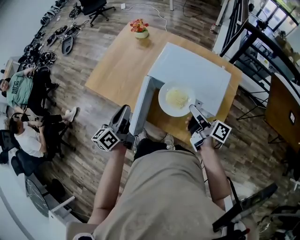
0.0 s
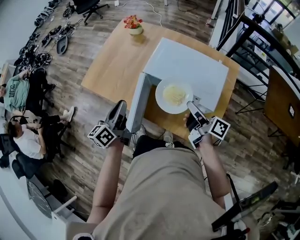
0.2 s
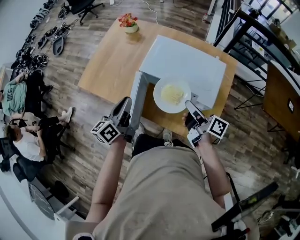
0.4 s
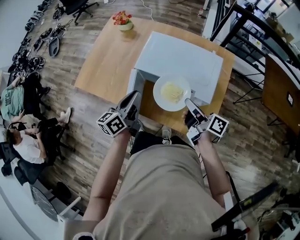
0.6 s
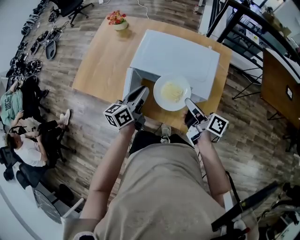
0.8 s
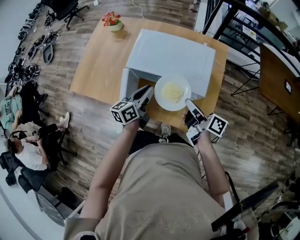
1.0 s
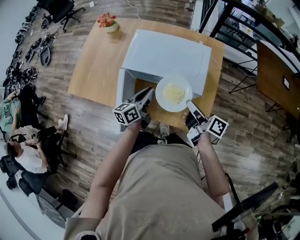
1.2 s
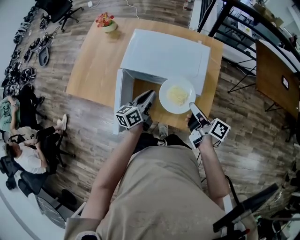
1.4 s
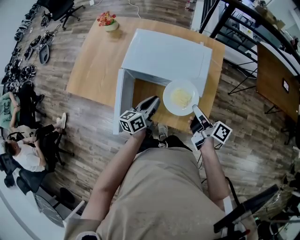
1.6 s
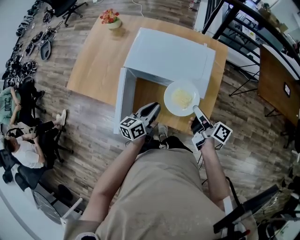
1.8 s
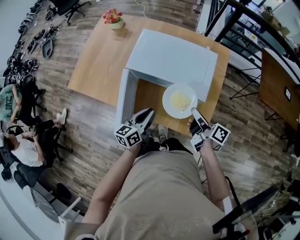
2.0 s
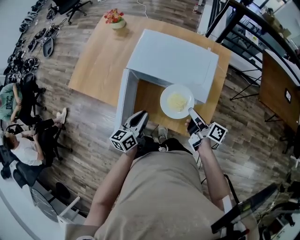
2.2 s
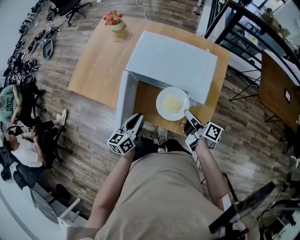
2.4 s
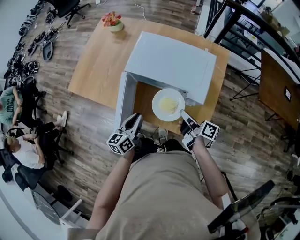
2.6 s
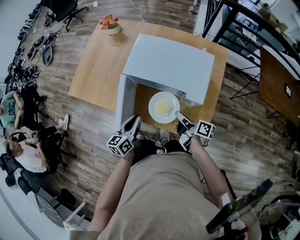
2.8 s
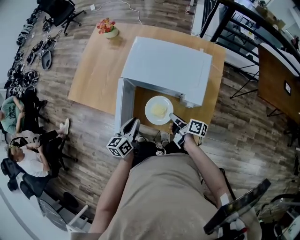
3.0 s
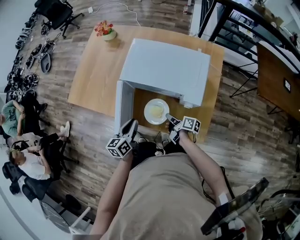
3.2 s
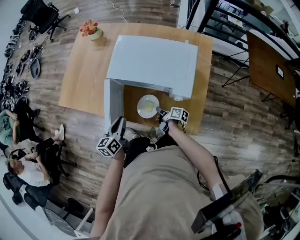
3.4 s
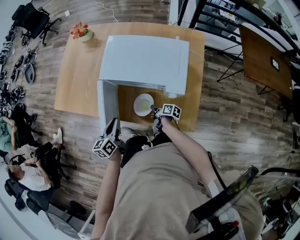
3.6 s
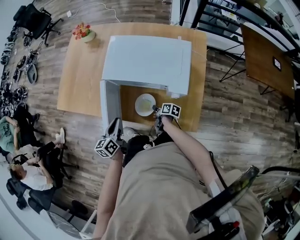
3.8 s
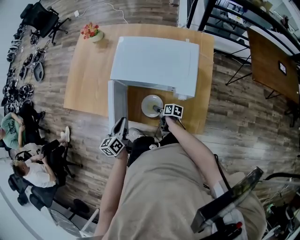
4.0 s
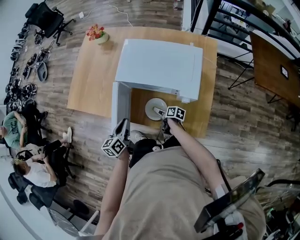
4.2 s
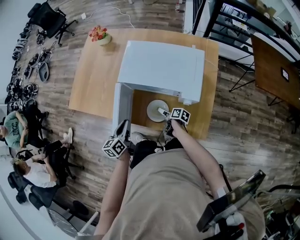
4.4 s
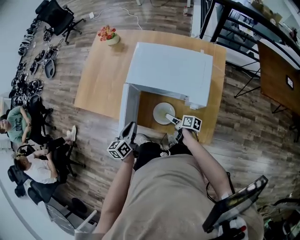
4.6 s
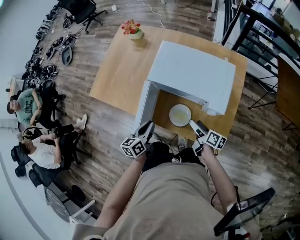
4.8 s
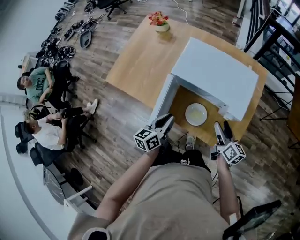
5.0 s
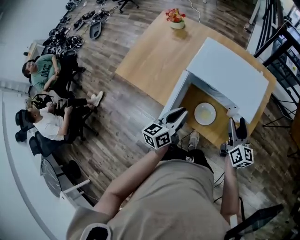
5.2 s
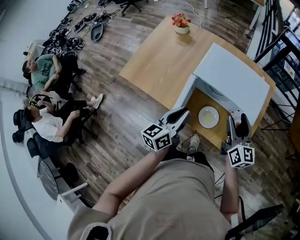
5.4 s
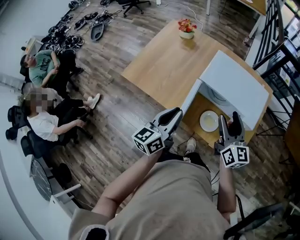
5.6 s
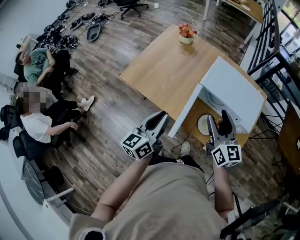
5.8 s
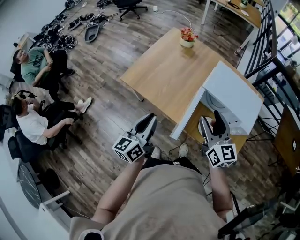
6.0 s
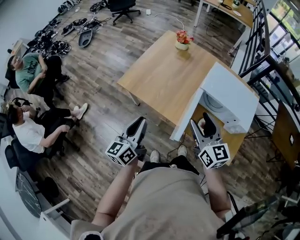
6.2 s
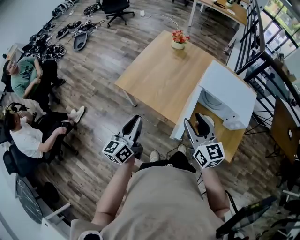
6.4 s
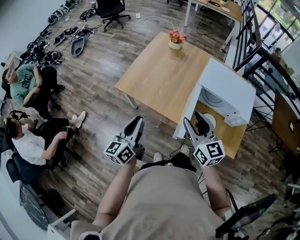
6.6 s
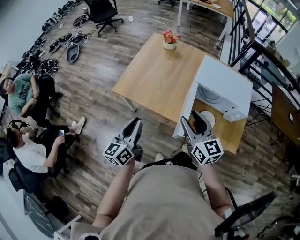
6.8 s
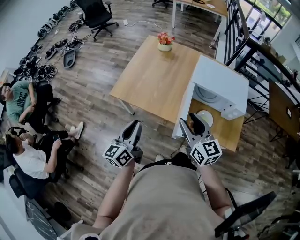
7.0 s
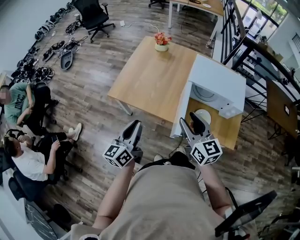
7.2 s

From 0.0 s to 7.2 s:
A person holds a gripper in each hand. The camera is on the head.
From 0.0 s to 1.4 s: The right gripper moves to the right, downward and backward, some 15 cm. Meanwhile the left gripper is displaced to the right and downward by approximately 25 cm, and rotates approximately 30 degrees.
From 1.4 s to 2.8 s: The left gripper travels to the left and backward by about 10 cm. The right gripper heads downward and to the left, covering about 10 cm.
From 2.8 s to 4.4 s: The right gripper is displaced downward by about 20 cm, turns by some 30 degrees, and opens up, while the left gripper is displaced to the left by approximately 5 cm.
From 4.4 s to 5.8 s: The left gripper shifts roughly 25 cm upward and to the left, and changes its angle by about 20 degrees. Meanwhile the right gripper moves upward, some 50 cm, twists about 70 degrees counterclockwise, seen from behind, and closes up.
From 5.8 s to 7.2 s: The right gripper shifts some 15 cm to the left and backward, while the left gripper is displaced to the left by about 15 cm.

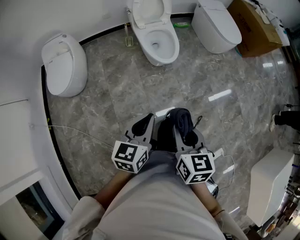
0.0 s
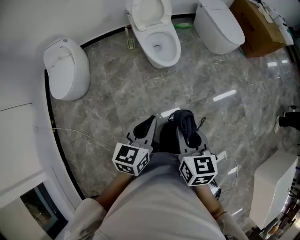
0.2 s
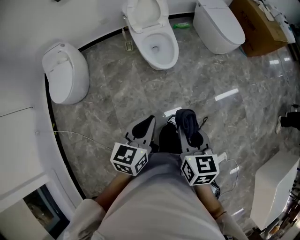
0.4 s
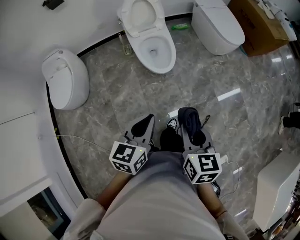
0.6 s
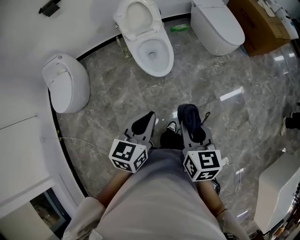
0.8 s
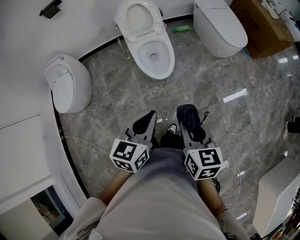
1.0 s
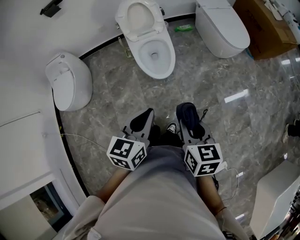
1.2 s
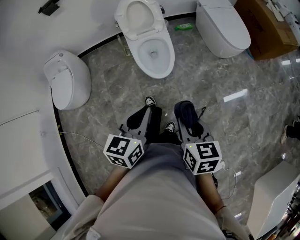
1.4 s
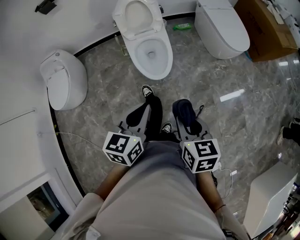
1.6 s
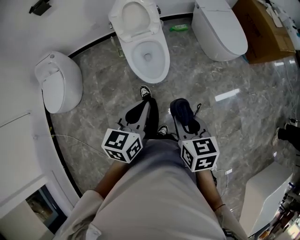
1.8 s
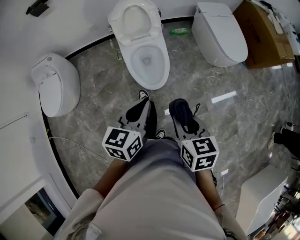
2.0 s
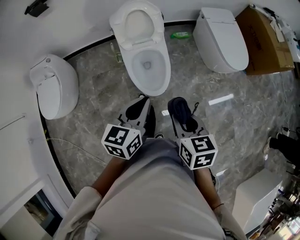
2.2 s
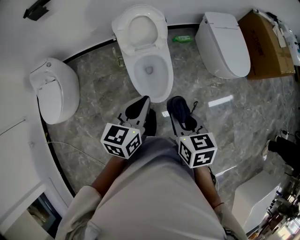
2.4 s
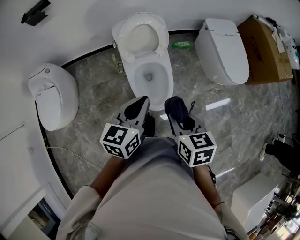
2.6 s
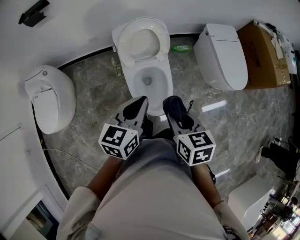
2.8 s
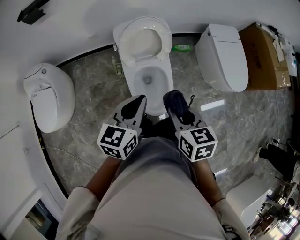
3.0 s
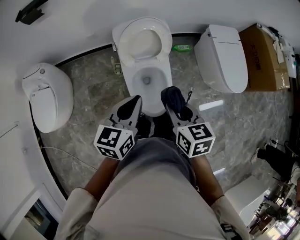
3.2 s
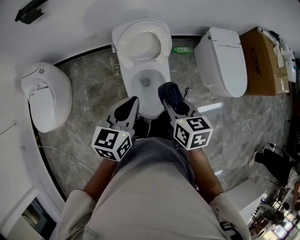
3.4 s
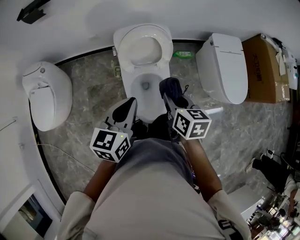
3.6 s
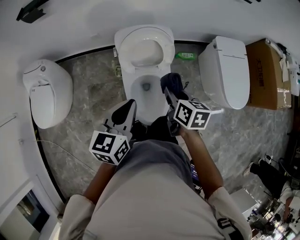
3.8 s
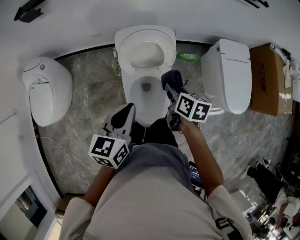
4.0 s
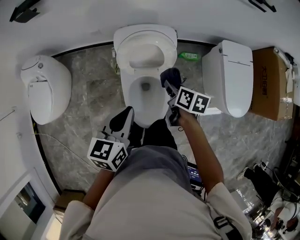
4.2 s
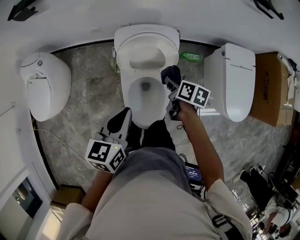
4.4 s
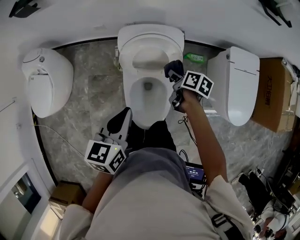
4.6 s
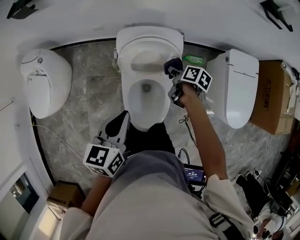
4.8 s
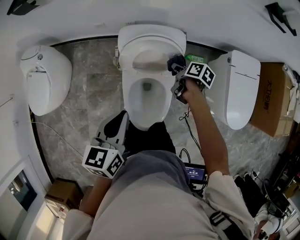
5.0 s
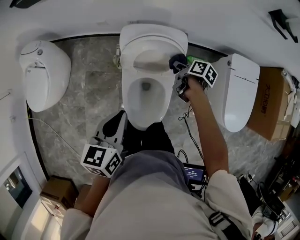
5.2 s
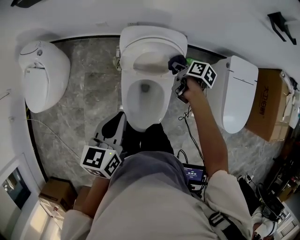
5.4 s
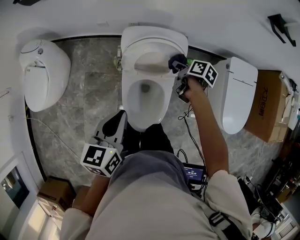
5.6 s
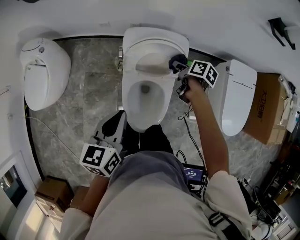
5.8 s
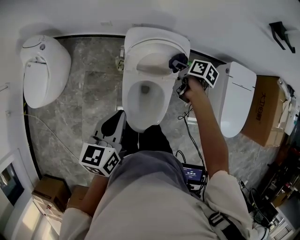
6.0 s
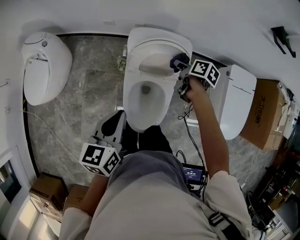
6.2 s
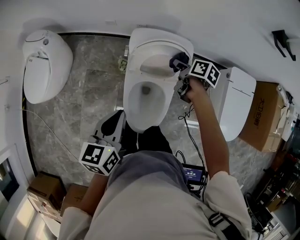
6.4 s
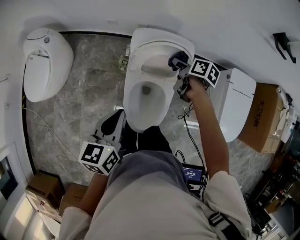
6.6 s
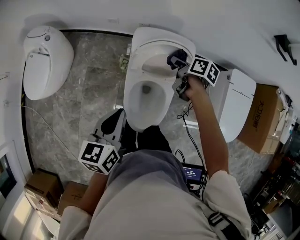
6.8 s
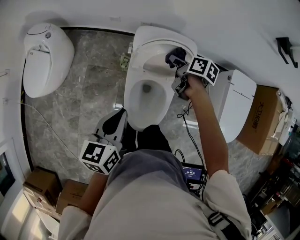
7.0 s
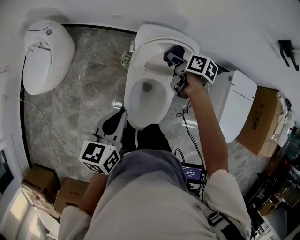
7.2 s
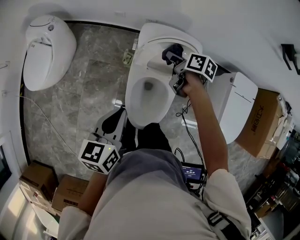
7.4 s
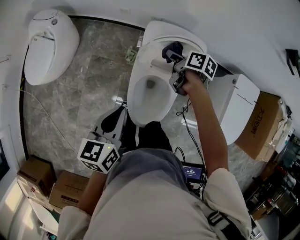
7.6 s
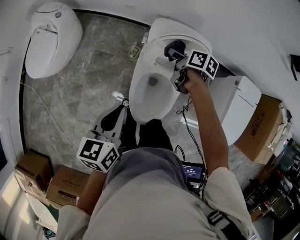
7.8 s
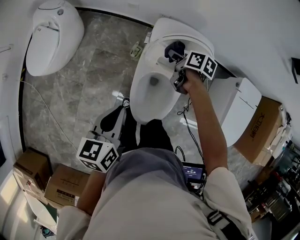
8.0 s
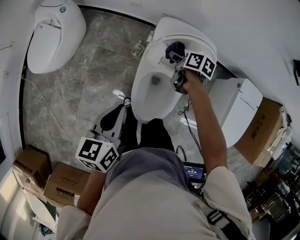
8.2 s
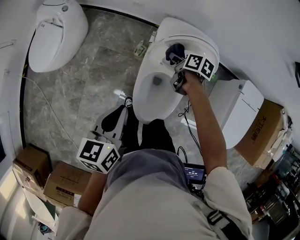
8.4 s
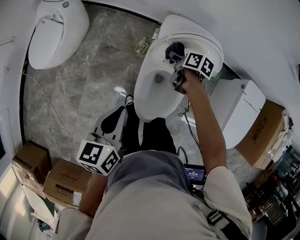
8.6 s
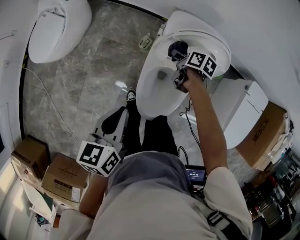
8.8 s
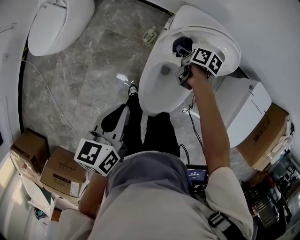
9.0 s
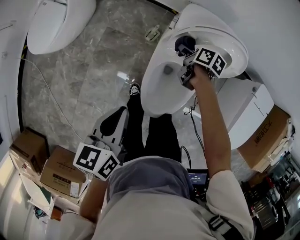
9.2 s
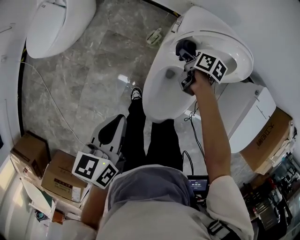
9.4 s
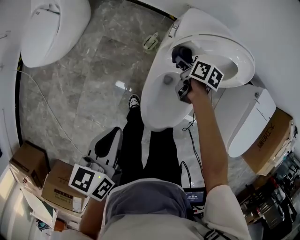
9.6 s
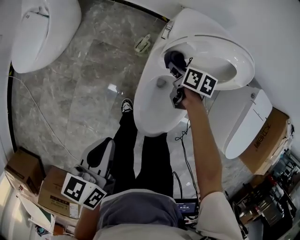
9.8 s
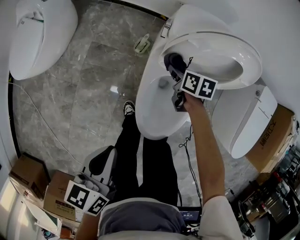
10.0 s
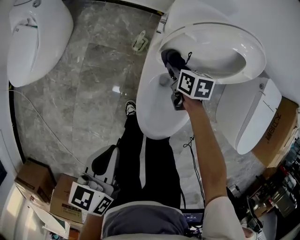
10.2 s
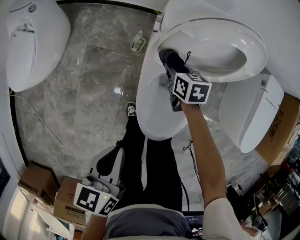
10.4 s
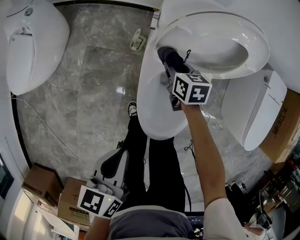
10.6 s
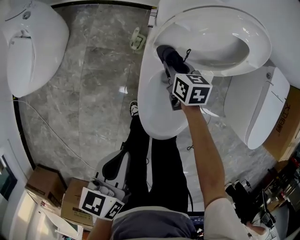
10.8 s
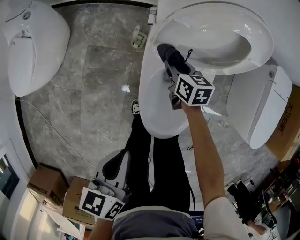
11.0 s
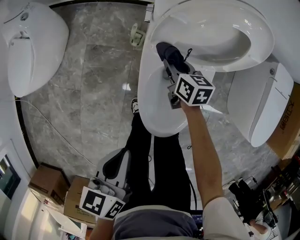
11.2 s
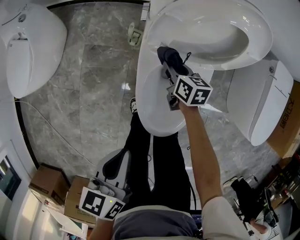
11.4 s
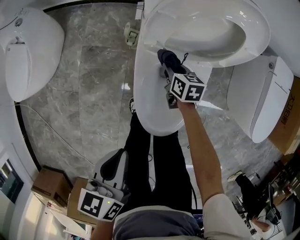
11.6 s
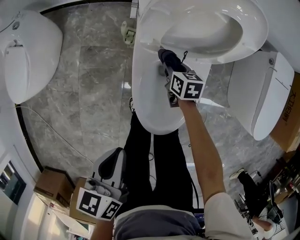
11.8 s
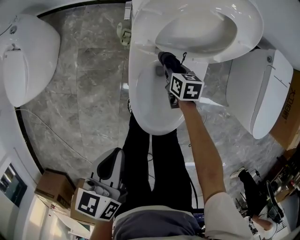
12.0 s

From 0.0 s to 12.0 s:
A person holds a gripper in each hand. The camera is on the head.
From 0.0 s to 1.6 s: The grippers both shift forward and to the right by some 30 cm.
From 1.6 s to 3.0 s: The grippers both shift forward by approximately 35 cm.
From 3.0 s to 4.4 s: The left gripper travels forward by approximately 10 cm. The right gripper moves forward and downward, about 35 cm, and rotates some 30 degrees.
From 4.4 s to 6.0 s: The right gripper goes about 10 cm forward. The left gripper moves roughly 5 cm.
From 6.0 s to 7.6 s: The left gripper heads to the left, covering about 5 cm, while the right gripper goes some 15 cm to the left.
From 7.6 s to 9.0 s: The right gripper moves downward and to the left, approximately 15 cm; the left gripper goes approximately 5 cm to the left.
From 9.0 s to 10.4 s: The grippers both shift downward by approximately 10 cm. The right gripper turns by about 30 degrees.
From 10.4 s to 12.0 s: The left gripper moves about 5 cm, while the right gripper heads downward, to the right and backward, covering about 15 cm.

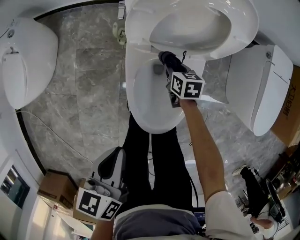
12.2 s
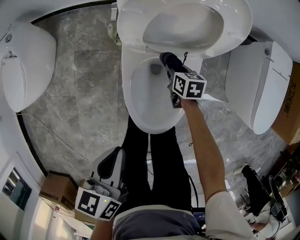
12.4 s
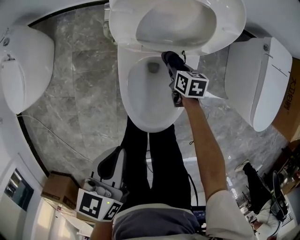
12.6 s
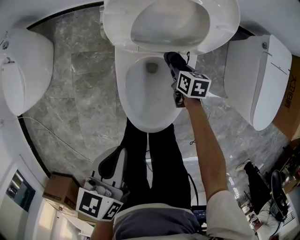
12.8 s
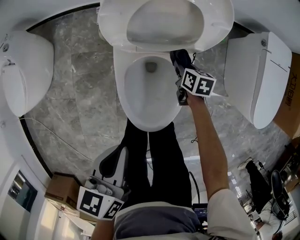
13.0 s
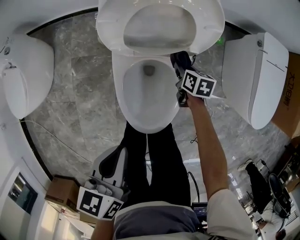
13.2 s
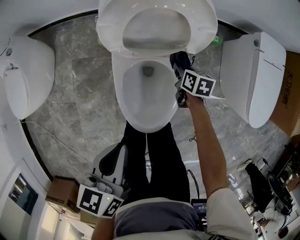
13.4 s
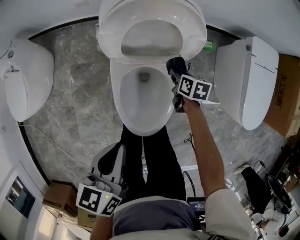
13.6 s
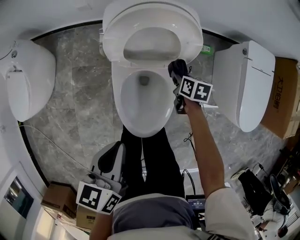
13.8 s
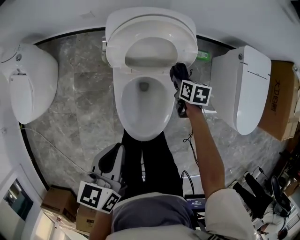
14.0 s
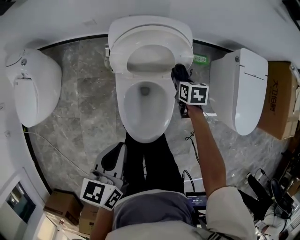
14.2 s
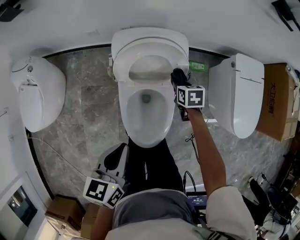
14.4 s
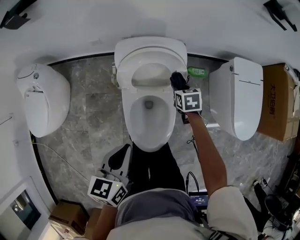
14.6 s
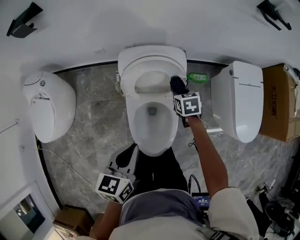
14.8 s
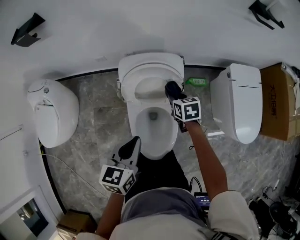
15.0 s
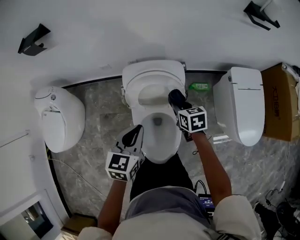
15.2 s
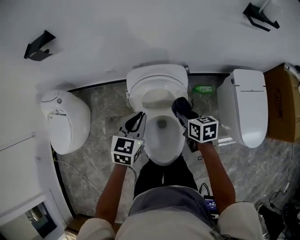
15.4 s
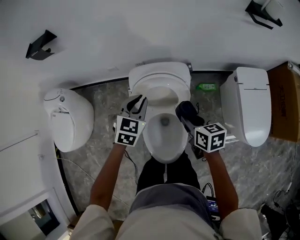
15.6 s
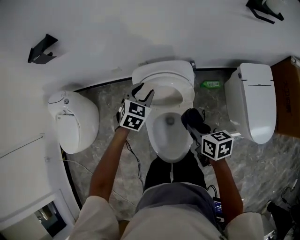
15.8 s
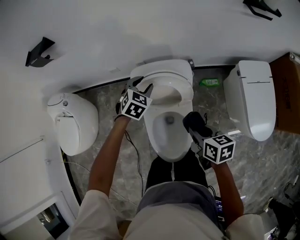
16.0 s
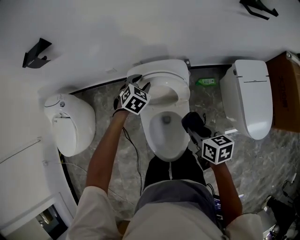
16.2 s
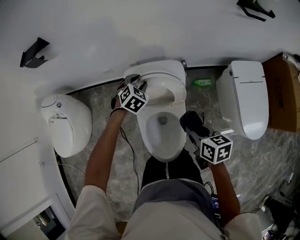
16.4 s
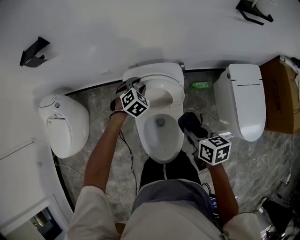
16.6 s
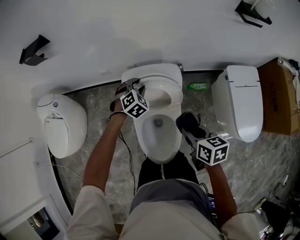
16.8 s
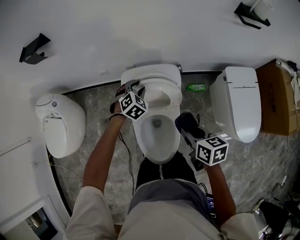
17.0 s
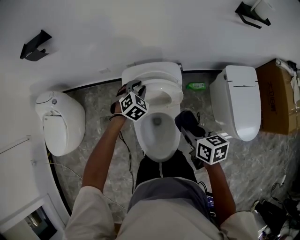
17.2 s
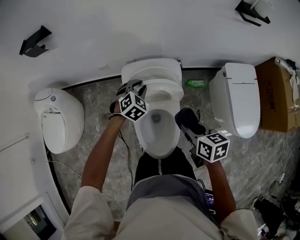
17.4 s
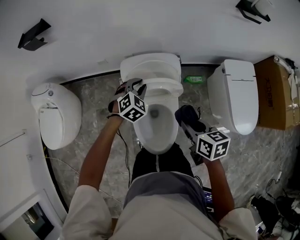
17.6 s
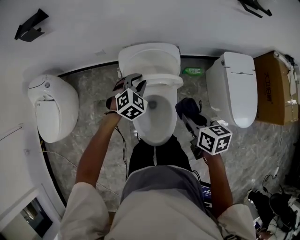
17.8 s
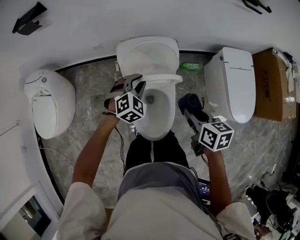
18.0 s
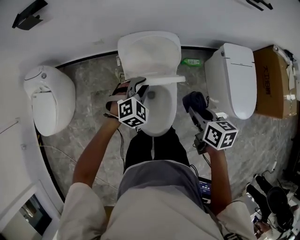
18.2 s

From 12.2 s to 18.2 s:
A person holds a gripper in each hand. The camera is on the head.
From 12.2 s to 13.8 s: The left gripper travels to the right and upward by some 10 cm. Meanwhile the right gripper shifts roughly 15 cm to the right and upward.
From 13.8 s to 15.2 s: The left gripper shifts approximately 15 cm forward and upward, and swivels roughly 30 degrees. Meanwhile the right gripper heads upward, covering some 20 cm.
From 15.2 s to 16.6 s: The left gripper heads forward and downward, covering roughly 20 cm, rolls clockwise, seen from behind, by some 50 degrees, and opens its fingers; the right gripper travels backward and upward by some 15 cm.
From 16.6 s to 18.2 s: The left gripper is displaced backward by about 20 cm; the right gripper shifts about 10 cm backward.
